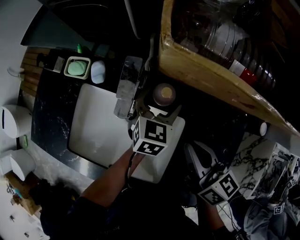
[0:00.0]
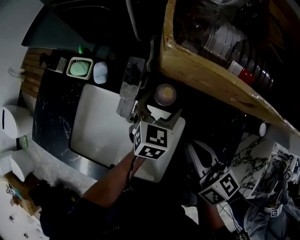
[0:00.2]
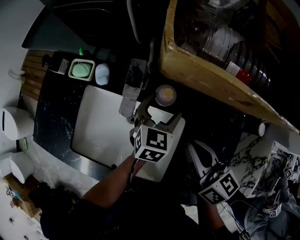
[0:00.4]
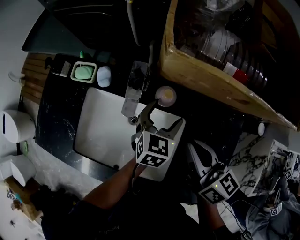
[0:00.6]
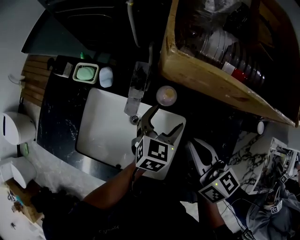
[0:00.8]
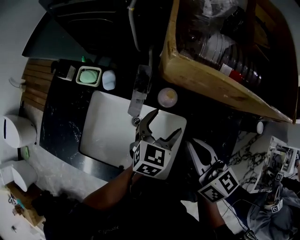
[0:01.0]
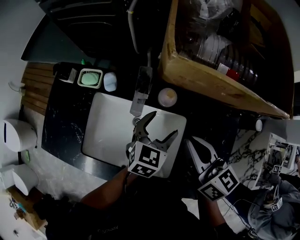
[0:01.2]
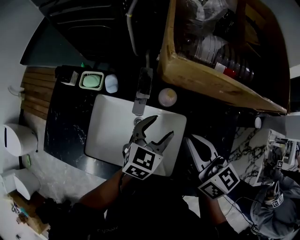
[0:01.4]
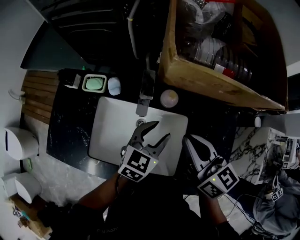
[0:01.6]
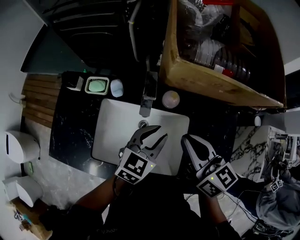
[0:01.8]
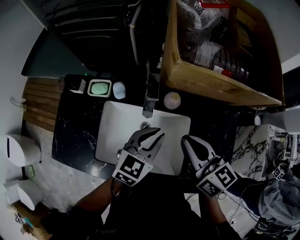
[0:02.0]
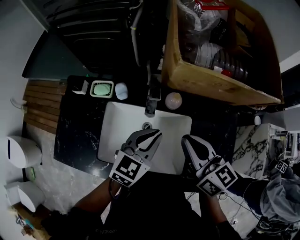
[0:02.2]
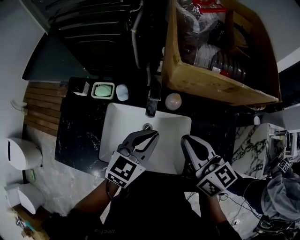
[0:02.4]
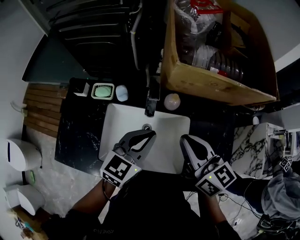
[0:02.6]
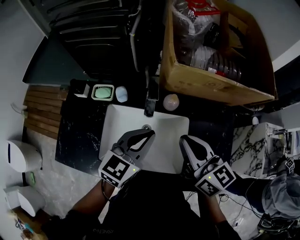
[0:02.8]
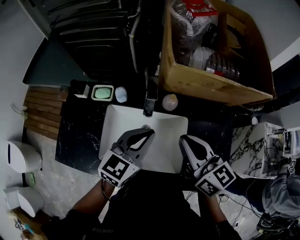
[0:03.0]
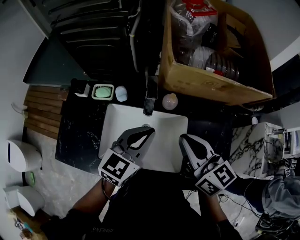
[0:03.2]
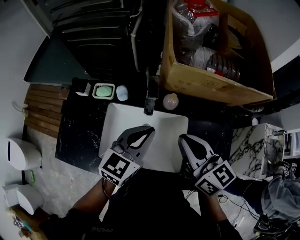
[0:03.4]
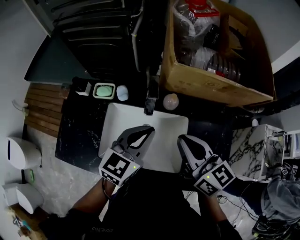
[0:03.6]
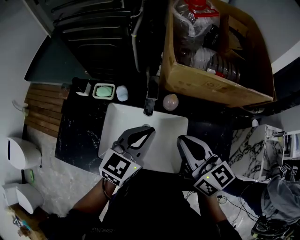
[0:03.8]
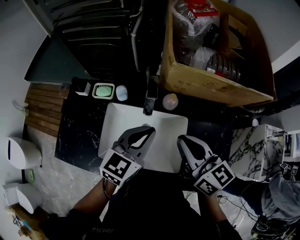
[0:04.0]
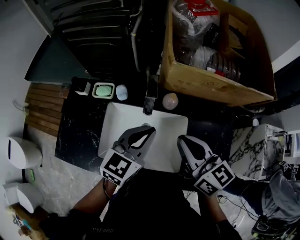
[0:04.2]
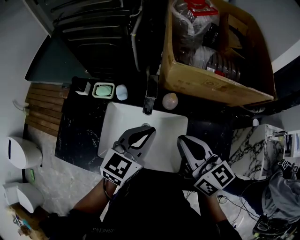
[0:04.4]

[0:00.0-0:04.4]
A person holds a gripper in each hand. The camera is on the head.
0:00.0 to 0:01.4: The left gripper goes some 15 cm backward and upward. The right gripper moves upward, about 10 cm.
0:01.4 to 0:03.0: The right gripper moves approximately 10 cm; the left gripper is displaced upward, to the left and backward by roughly 15 cm, and closes its fingers.
0:03.0 to 0:04.4: Neither gripper changes place.

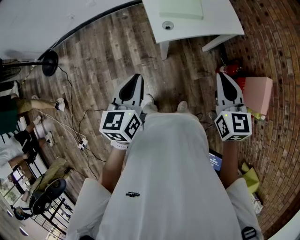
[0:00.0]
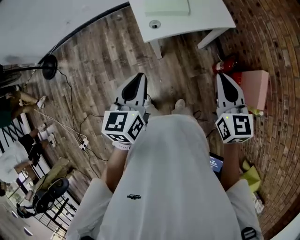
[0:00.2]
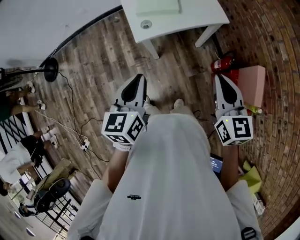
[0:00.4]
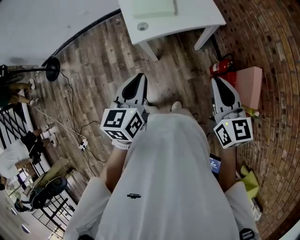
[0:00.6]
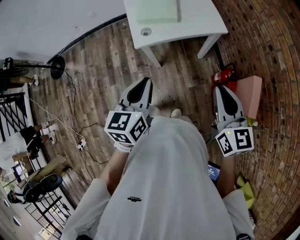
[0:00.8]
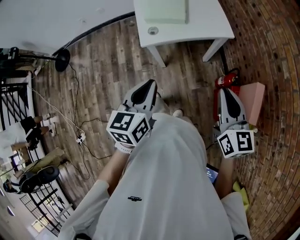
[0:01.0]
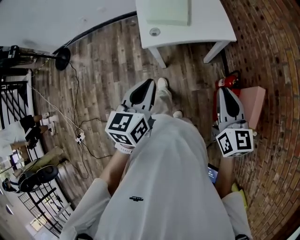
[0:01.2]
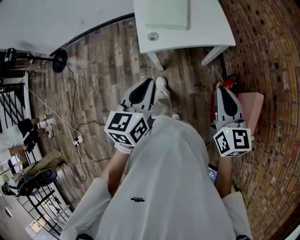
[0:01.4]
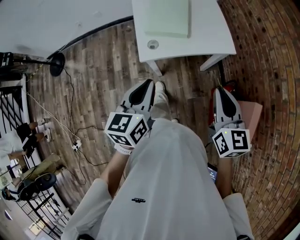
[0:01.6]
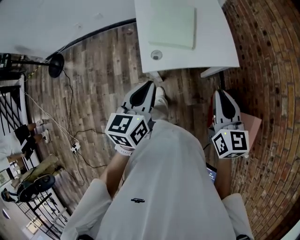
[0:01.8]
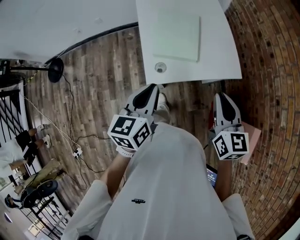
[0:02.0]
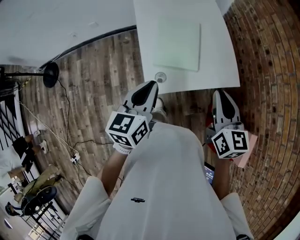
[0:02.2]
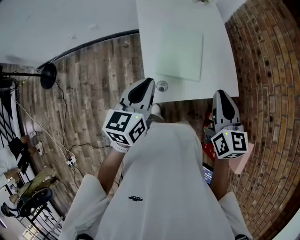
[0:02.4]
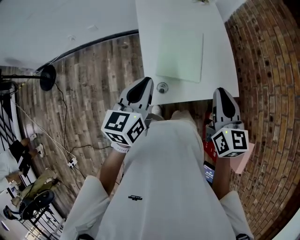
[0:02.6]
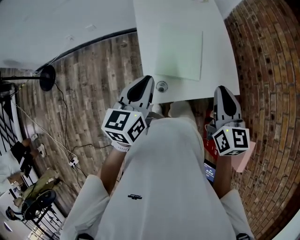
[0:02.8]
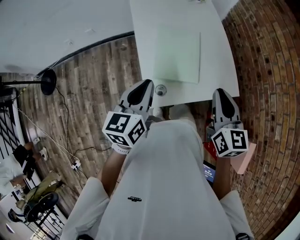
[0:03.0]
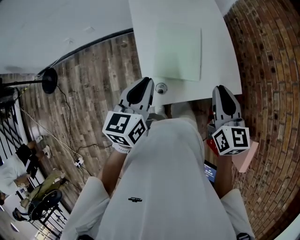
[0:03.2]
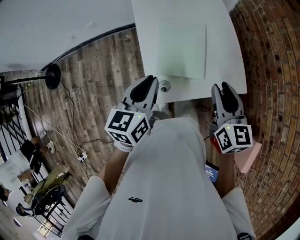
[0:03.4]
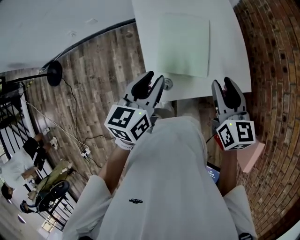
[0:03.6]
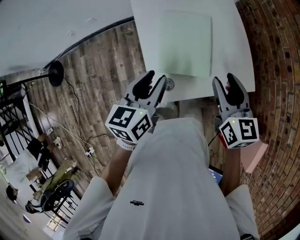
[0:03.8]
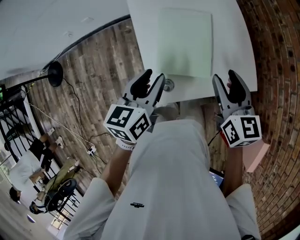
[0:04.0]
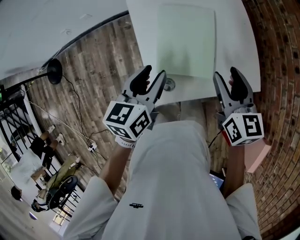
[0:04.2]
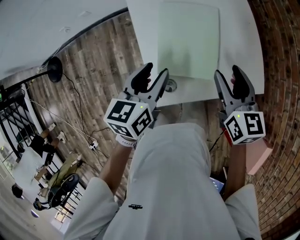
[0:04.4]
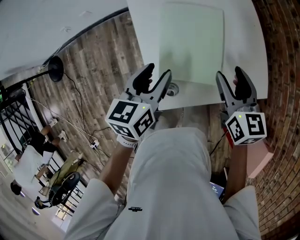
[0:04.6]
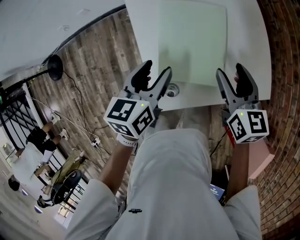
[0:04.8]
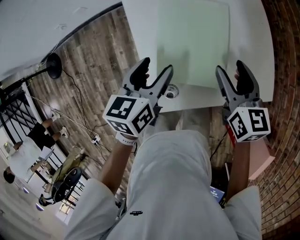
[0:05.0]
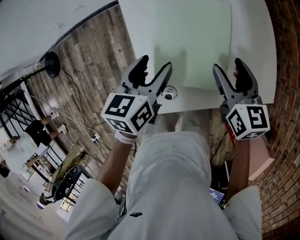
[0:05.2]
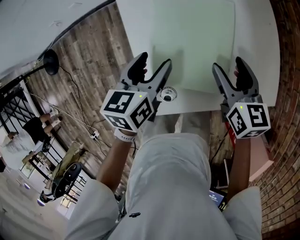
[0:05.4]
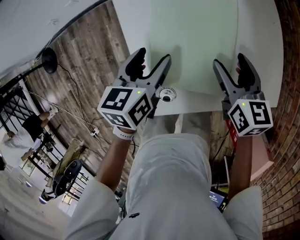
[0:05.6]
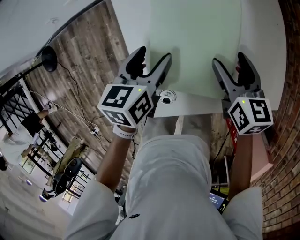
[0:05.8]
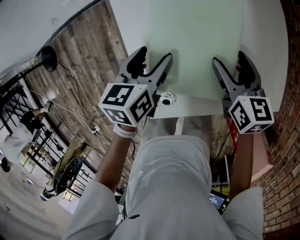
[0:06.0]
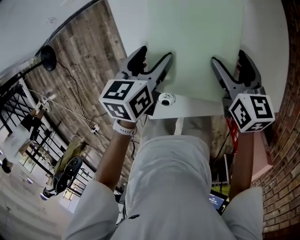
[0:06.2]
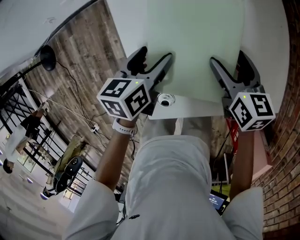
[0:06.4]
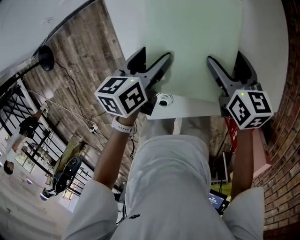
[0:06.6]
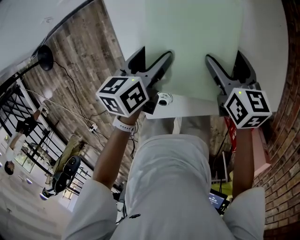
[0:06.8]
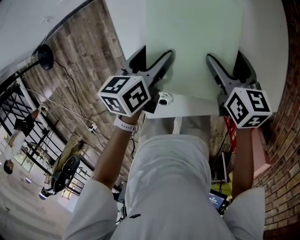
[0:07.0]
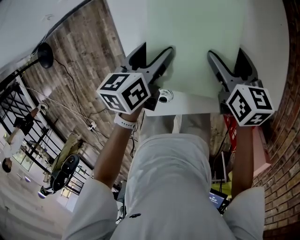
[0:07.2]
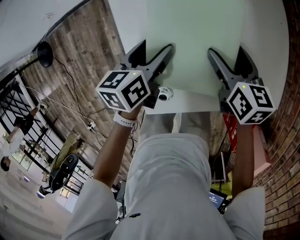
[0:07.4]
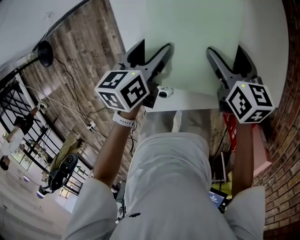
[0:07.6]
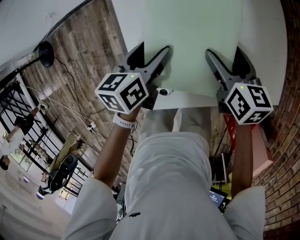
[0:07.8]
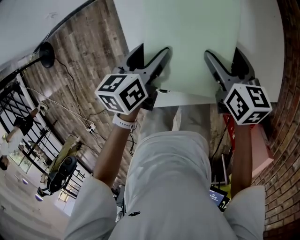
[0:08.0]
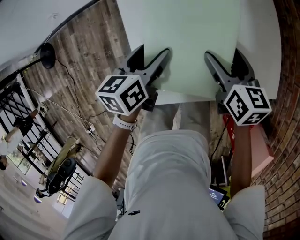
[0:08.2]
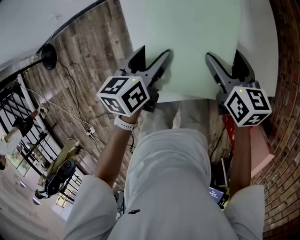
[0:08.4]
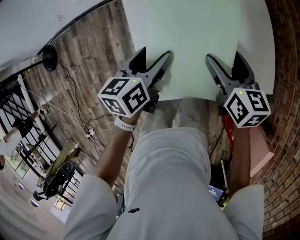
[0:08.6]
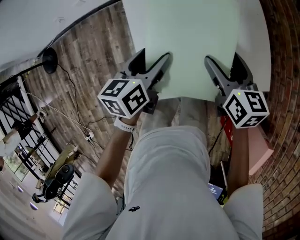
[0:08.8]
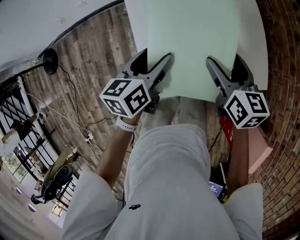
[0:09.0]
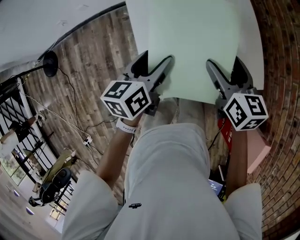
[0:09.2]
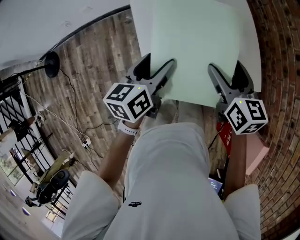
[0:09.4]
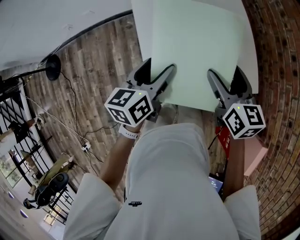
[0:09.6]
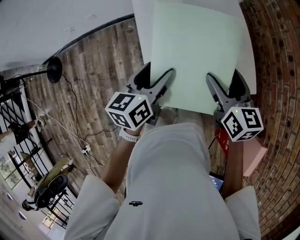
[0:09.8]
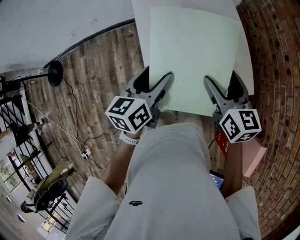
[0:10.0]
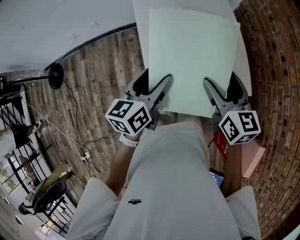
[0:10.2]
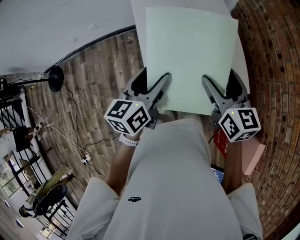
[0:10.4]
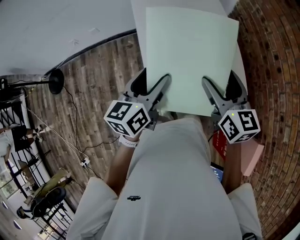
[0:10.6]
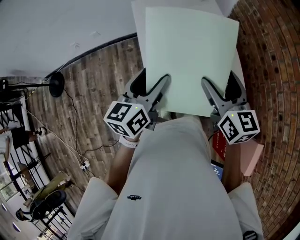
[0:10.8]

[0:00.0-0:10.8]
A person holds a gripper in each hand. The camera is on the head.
0:00.0 to 0:01.6: The right gripper moves to the right and forward, about 15 cm; the left gripper goes about 20 cm to the right.
0:01.6 to 0:03.0: The left gripper is displaced forward and to the left by approximately 25 cm. The right gripper shifts some 25 cm forward.
0:03.0 to 0:04.6: The two grippers go some 20 cm downward and forward. The right gripper opens, while the left gripper opens.
0:04.6 to 0:06.2: Both grippers travel together downward, roughly 15 cm.
0:06.2 to 0:07.8: The grippers make only small movements.
0:07.8 to 0:09.2: The two grippers go roughly 15 cm upward.
0:09.2 to 0:10.8: The grippers both shift upward and backward by roughly 15 cm.

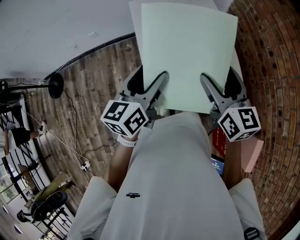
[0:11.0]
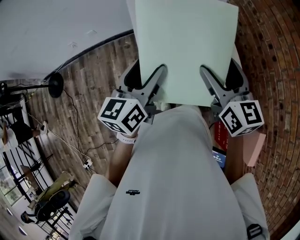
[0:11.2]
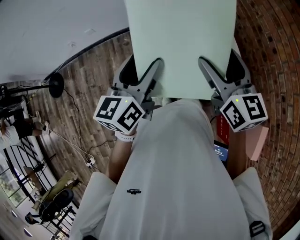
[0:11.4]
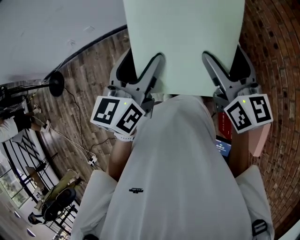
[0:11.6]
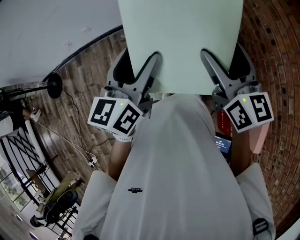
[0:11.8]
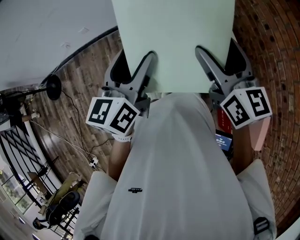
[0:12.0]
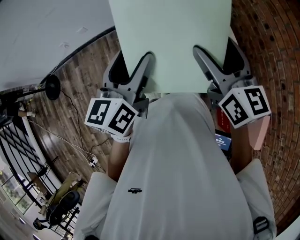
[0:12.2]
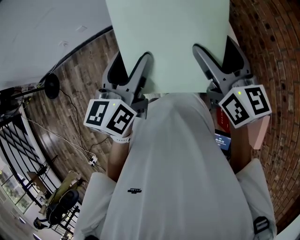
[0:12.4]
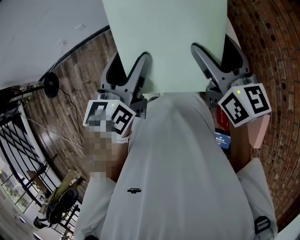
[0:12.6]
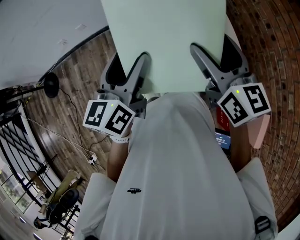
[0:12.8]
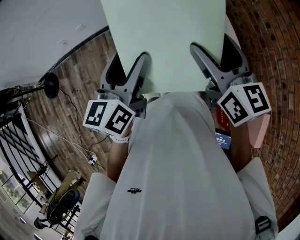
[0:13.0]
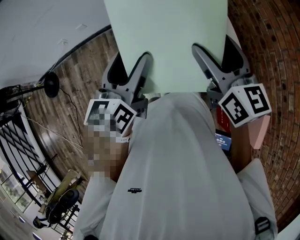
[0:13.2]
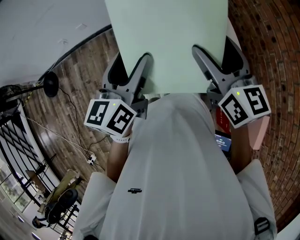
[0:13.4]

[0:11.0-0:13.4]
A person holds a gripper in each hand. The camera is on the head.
0:11.0 to 0:13.4: The grippers make only small movements.

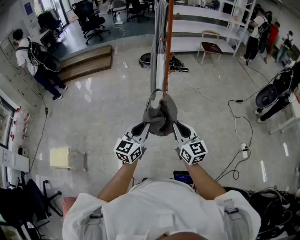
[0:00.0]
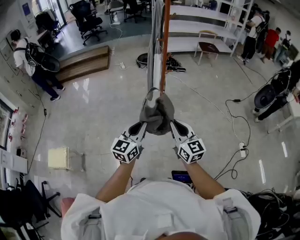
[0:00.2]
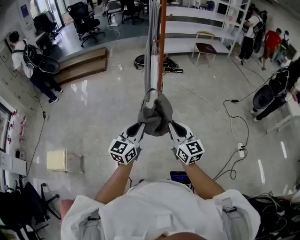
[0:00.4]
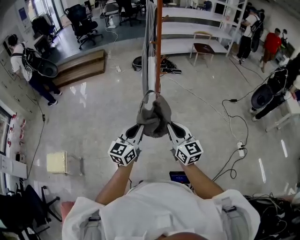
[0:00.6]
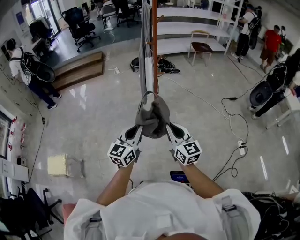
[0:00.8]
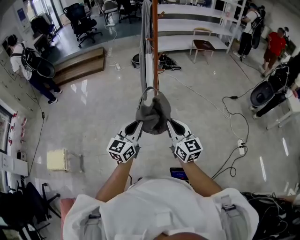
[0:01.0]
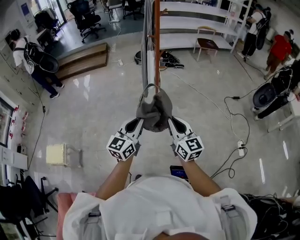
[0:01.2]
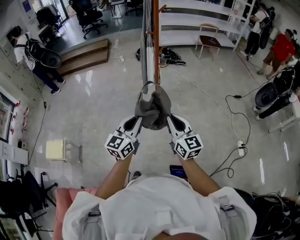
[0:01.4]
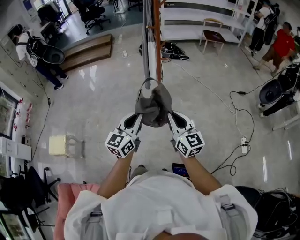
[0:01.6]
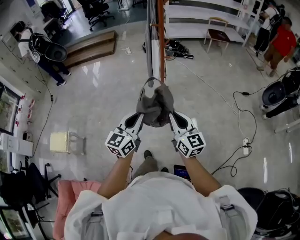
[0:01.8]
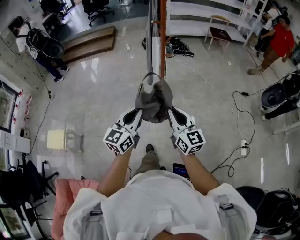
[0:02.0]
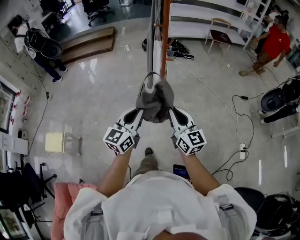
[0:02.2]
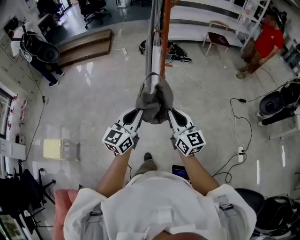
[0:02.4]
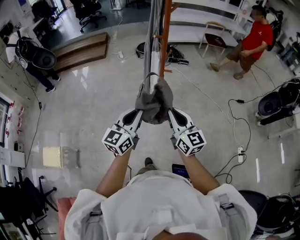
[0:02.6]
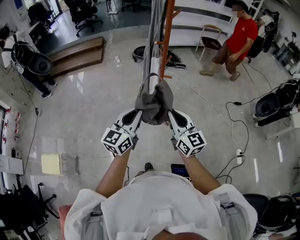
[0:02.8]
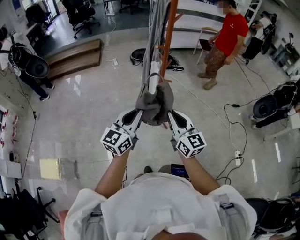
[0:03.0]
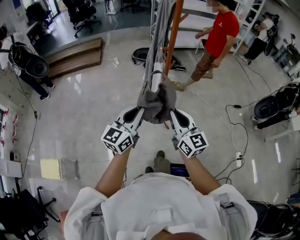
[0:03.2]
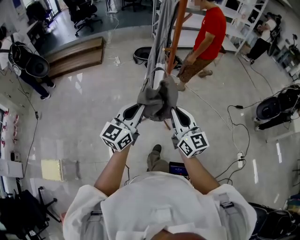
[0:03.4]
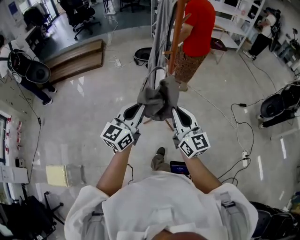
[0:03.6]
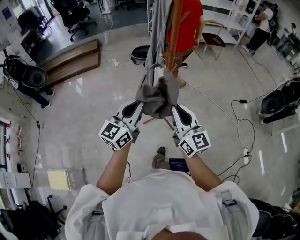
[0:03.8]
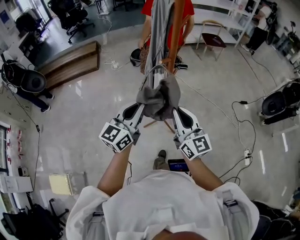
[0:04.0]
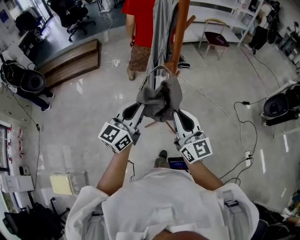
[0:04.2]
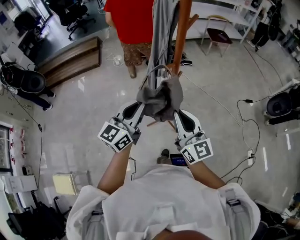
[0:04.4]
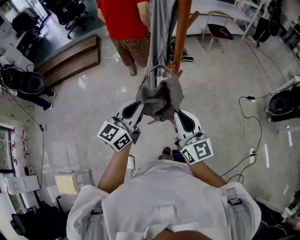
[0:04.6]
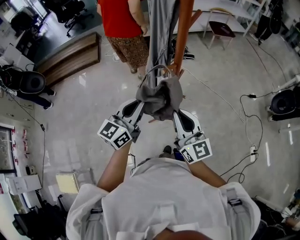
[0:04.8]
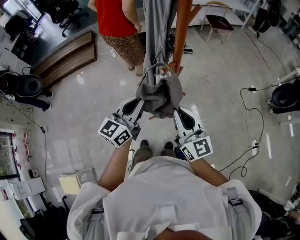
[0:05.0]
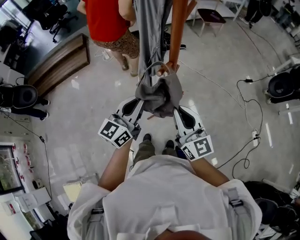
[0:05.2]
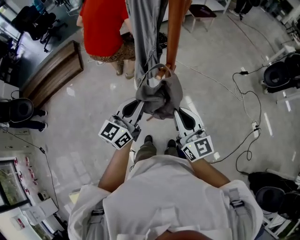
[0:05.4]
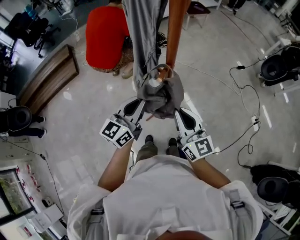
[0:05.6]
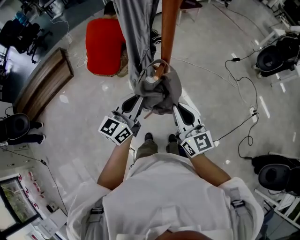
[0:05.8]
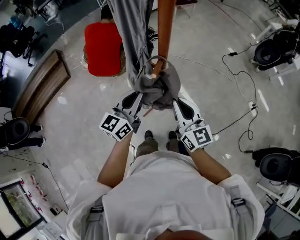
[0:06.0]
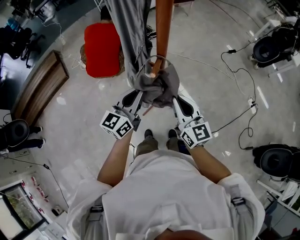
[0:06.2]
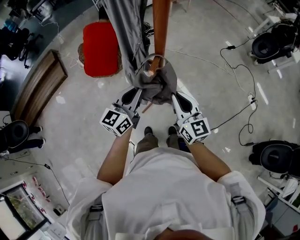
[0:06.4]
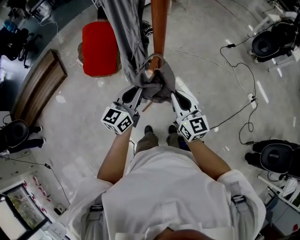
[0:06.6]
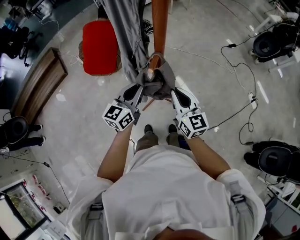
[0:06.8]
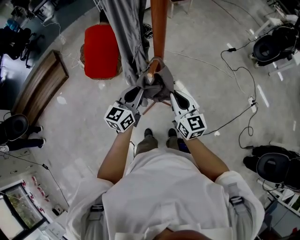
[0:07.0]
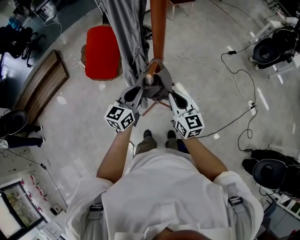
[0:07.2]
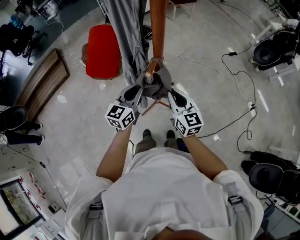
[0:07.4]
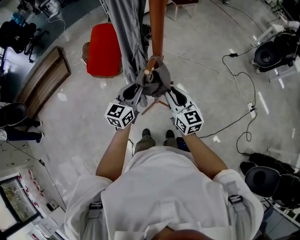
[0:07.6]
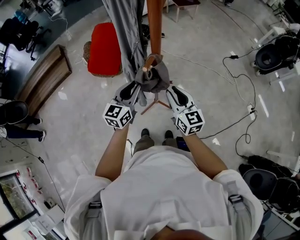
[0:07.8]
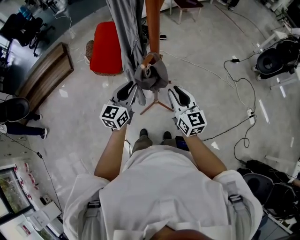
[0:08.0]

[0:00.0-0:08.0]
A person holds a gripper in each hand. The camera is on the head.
0:00.0 to 0:01.6: The two grippers go about 10 cm to the right.
0:01.6 to 0:03.2: The grippers both shift forward and to the left by approximately 25 cm.
0:03.2 to 0:04.8: Both grippers travel together forward, about 25 cm.
0:04.8 to 0:06.4: The left gripper moves forward and downward, roughly 15 cm, and swivels about 20 degrees. Meanwhile the right gripper shifts some 10 cm downward and forward, and turns by about 30 degrees.
0:06.4 to 0:08.0: The grippers move only a little.
